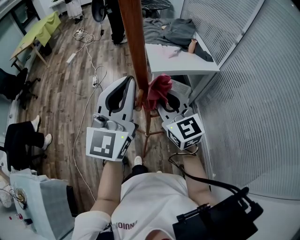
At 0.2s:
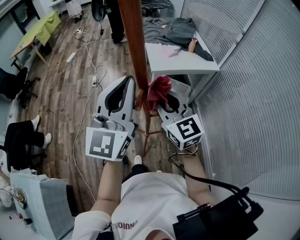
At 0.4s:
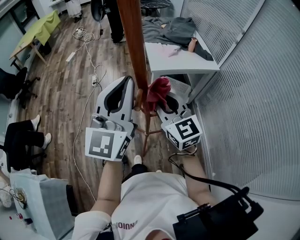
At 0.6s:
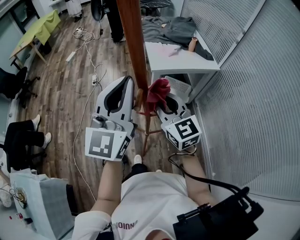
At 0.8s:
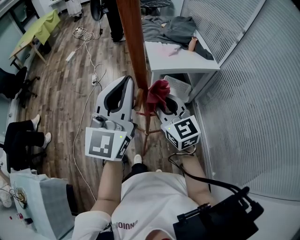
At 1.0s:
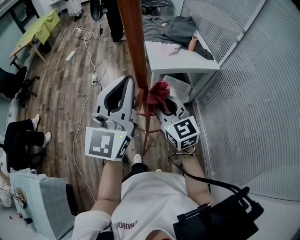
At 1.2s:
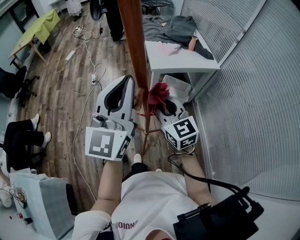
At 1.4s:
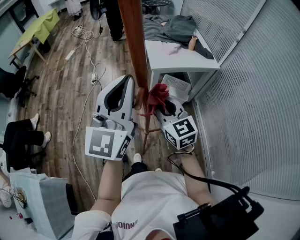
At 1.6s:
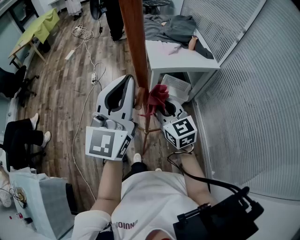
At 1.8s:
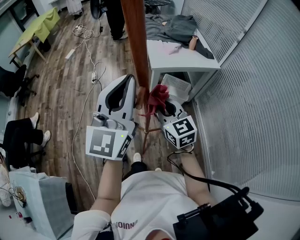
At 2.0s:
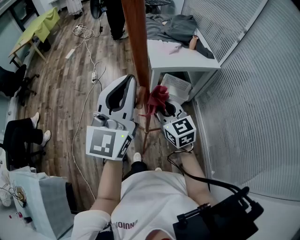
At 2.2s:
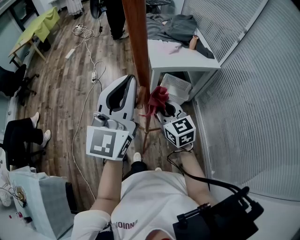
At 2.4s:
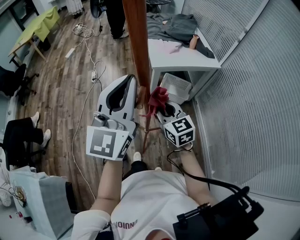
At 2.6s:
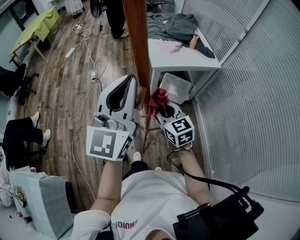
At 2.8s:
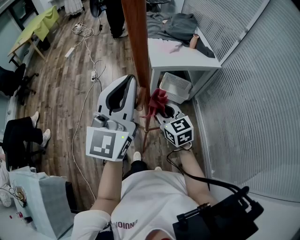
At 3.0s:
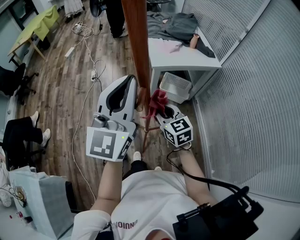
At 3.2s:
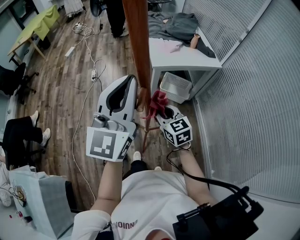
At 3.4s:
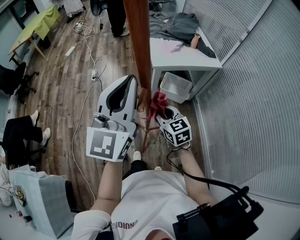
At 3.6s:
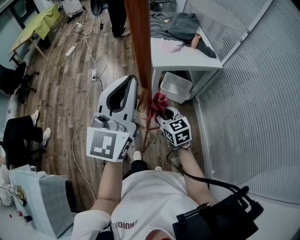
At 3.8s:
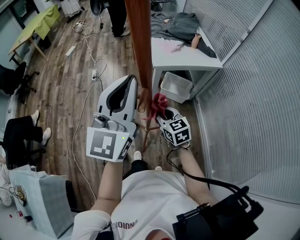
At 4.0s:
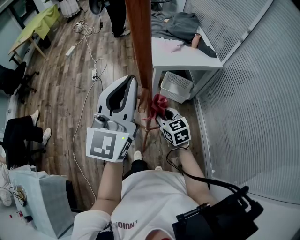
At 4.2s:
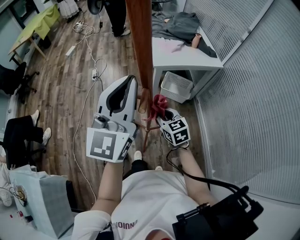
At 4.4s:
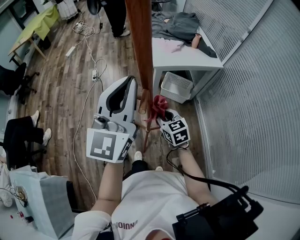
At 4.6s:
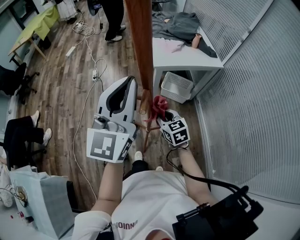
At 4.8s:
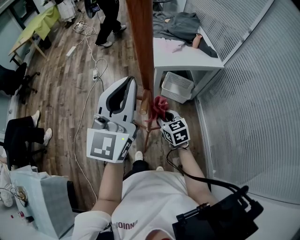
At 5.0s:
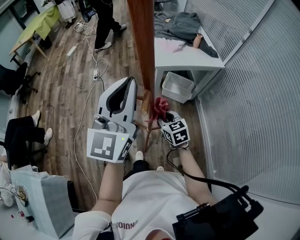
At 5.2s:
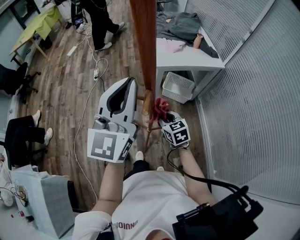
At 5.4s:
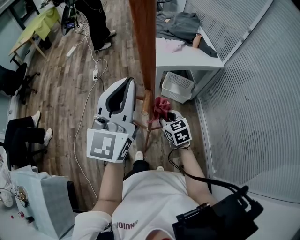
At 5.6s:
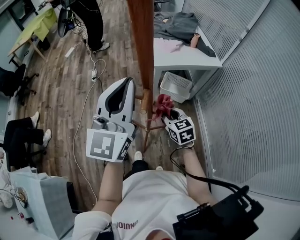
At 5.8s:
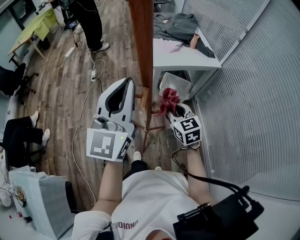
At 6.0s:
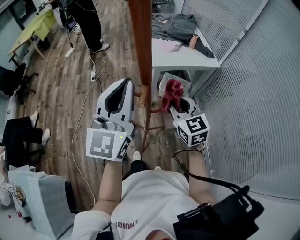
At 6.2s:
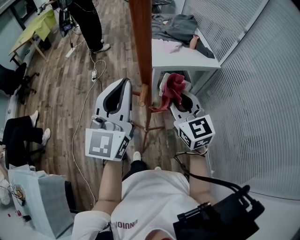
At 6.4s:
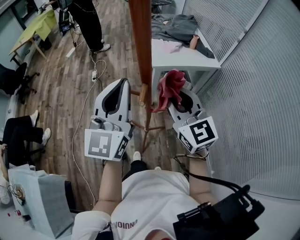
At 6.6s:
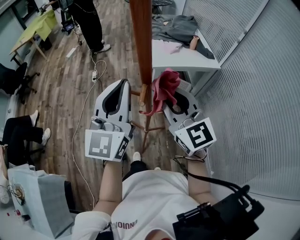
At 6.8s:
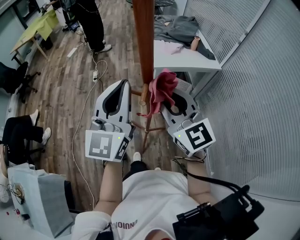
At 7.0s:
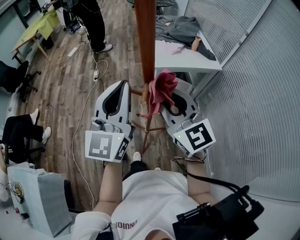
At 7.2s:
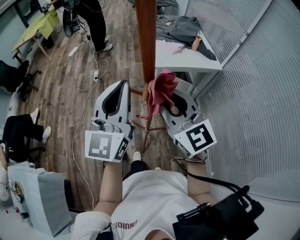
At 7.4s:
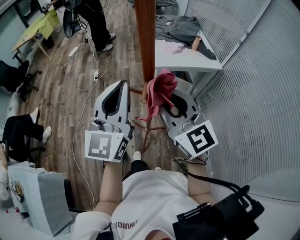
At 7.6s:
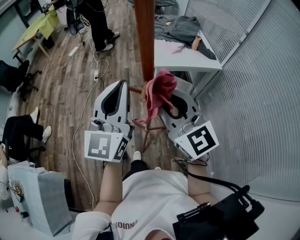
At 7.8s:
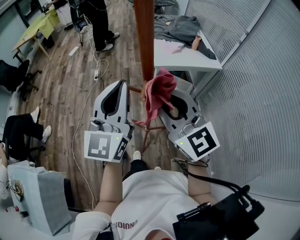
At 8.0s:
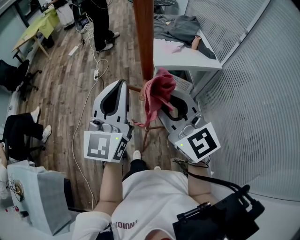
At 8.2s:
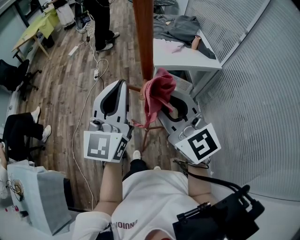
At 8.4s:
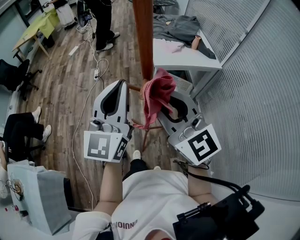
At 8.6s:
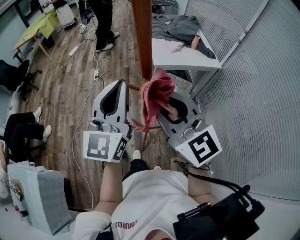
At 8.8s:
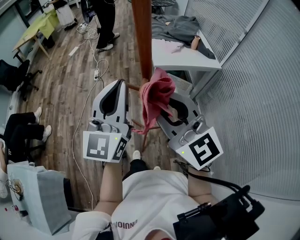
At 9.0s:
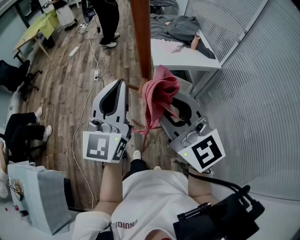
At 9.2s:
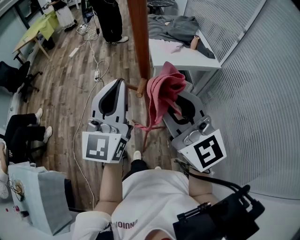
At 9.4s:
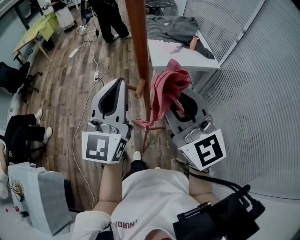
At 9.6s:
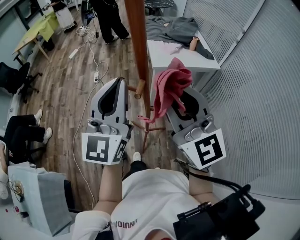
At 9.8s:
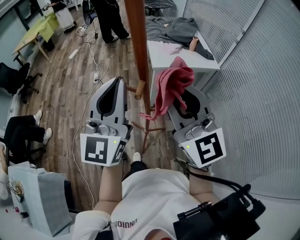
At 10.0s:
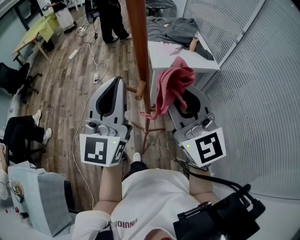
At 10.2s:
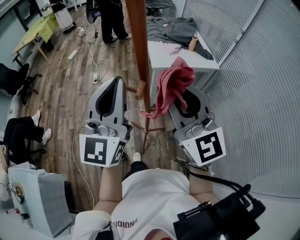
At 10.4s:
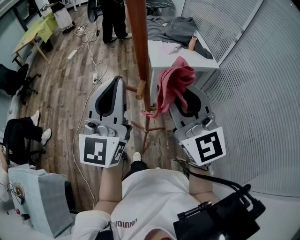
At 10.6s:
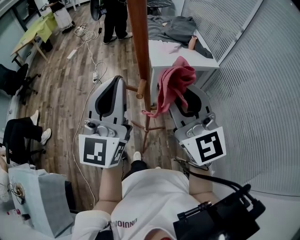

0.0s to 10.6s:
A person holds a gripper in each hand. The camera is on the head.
0.0s to 1.6s: The right gripper is displaced downward by about 10 cm.
1.6s to 3.0s: The right gripper is displaced downward by some 5 cm.
3.0s to 4.6s: The right gripper moves downward, approximately 5 cm.
4.6s to 6.0s: The right gripper goes roughly 15 cm upward.
6.0s to 7.6s: The right gripper moves upward, to the left and backward, about 15 cm, and changes its angle by some 30 degrees.
7.6s to 9.0s: The right gripper shifts some 5 cm upward.
9.0s to 10.6s: The grippers stay close to where they were, moving slightly.

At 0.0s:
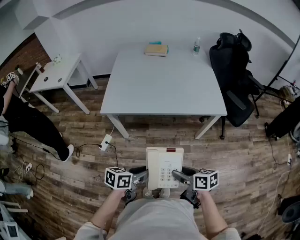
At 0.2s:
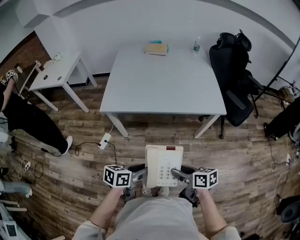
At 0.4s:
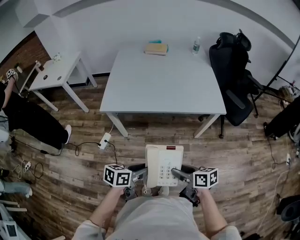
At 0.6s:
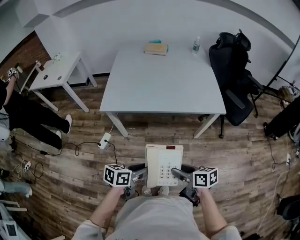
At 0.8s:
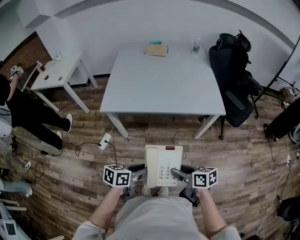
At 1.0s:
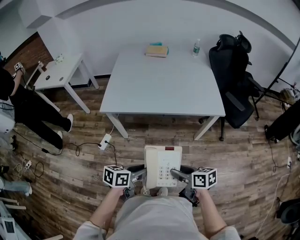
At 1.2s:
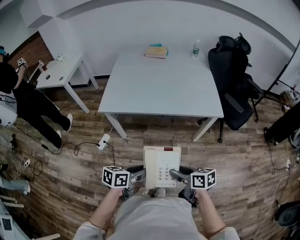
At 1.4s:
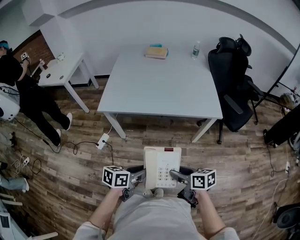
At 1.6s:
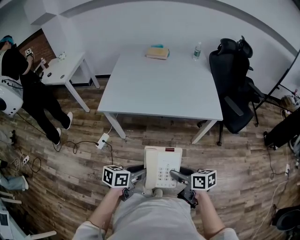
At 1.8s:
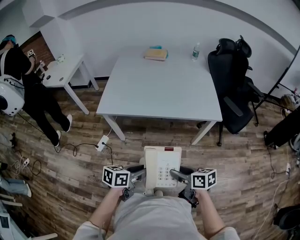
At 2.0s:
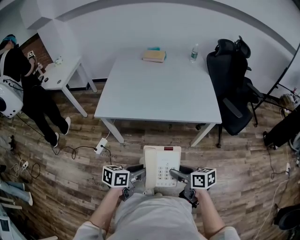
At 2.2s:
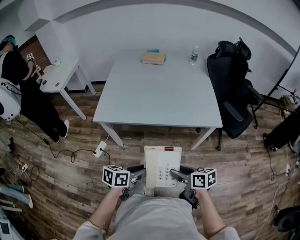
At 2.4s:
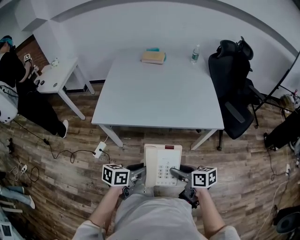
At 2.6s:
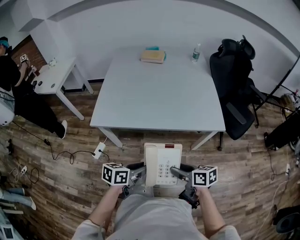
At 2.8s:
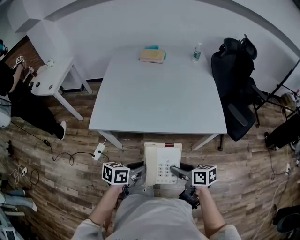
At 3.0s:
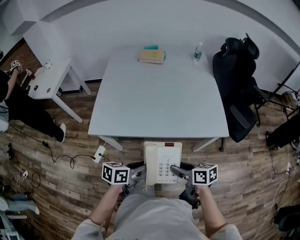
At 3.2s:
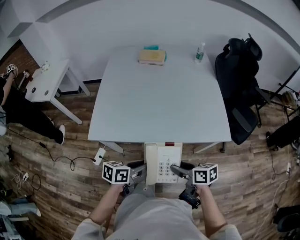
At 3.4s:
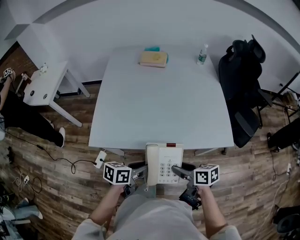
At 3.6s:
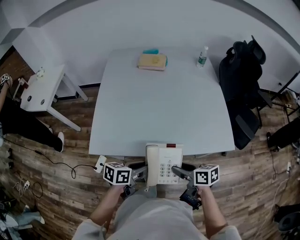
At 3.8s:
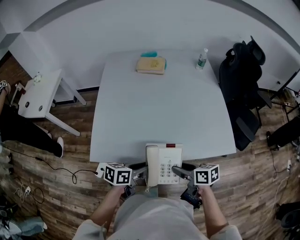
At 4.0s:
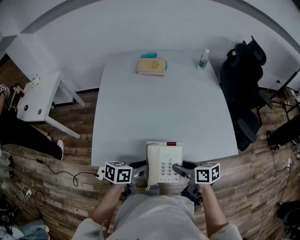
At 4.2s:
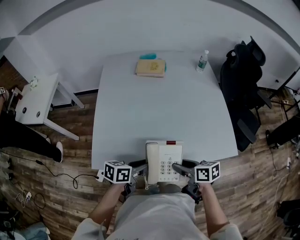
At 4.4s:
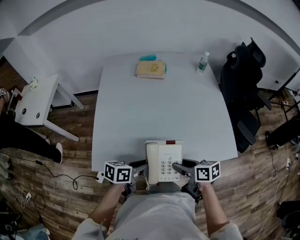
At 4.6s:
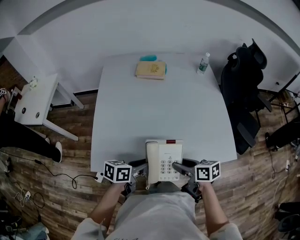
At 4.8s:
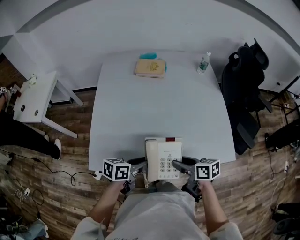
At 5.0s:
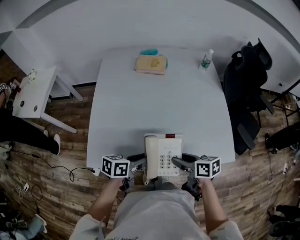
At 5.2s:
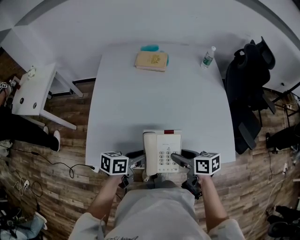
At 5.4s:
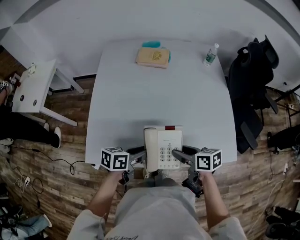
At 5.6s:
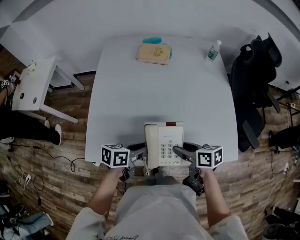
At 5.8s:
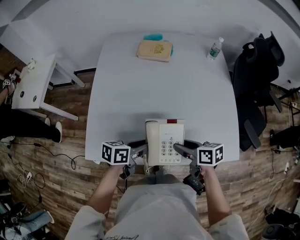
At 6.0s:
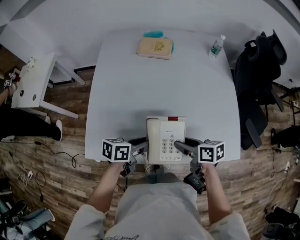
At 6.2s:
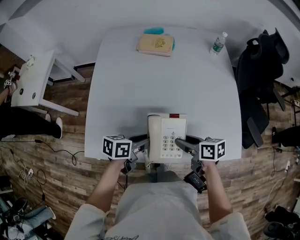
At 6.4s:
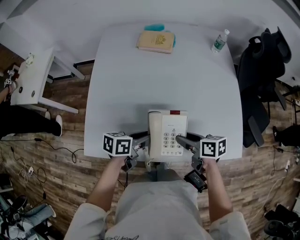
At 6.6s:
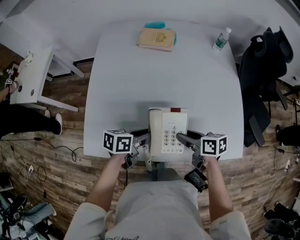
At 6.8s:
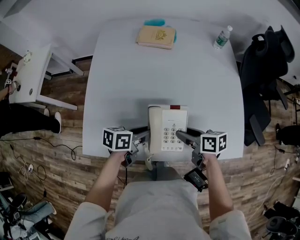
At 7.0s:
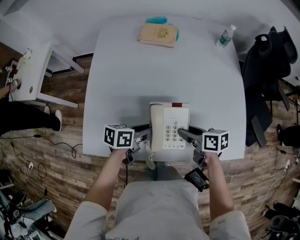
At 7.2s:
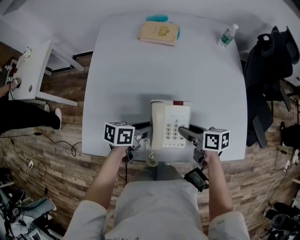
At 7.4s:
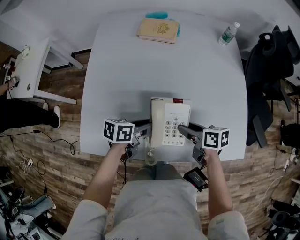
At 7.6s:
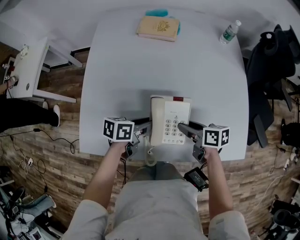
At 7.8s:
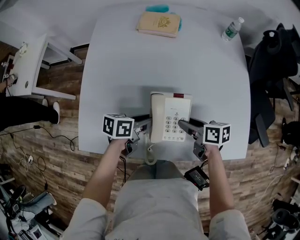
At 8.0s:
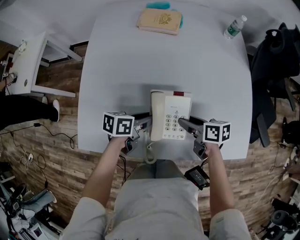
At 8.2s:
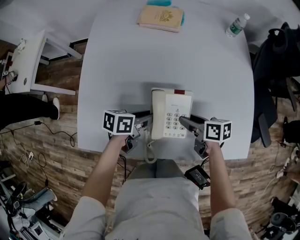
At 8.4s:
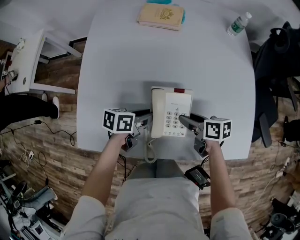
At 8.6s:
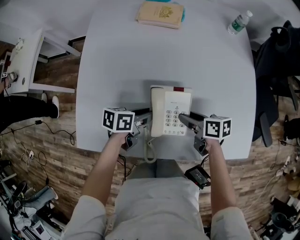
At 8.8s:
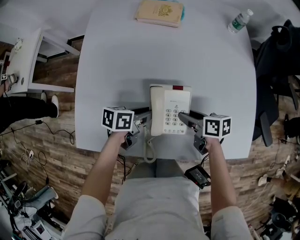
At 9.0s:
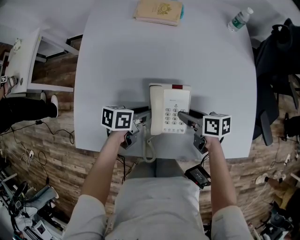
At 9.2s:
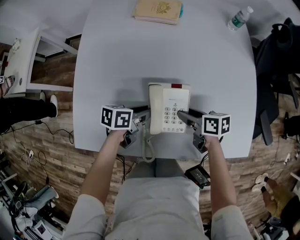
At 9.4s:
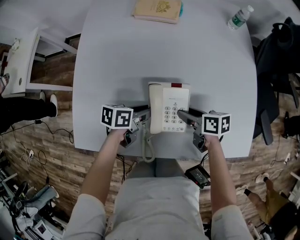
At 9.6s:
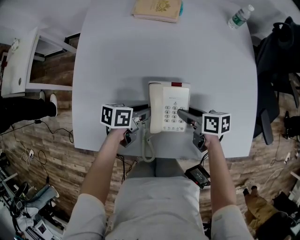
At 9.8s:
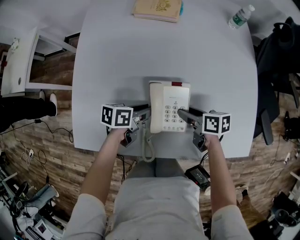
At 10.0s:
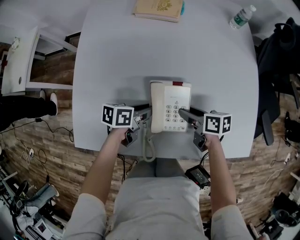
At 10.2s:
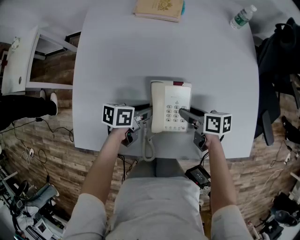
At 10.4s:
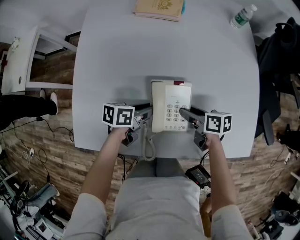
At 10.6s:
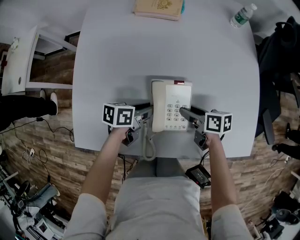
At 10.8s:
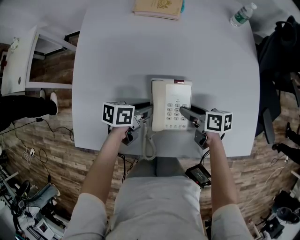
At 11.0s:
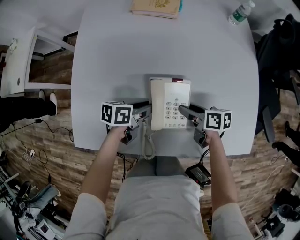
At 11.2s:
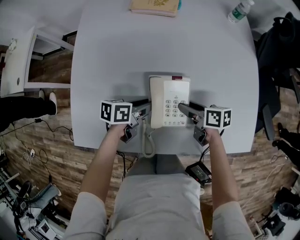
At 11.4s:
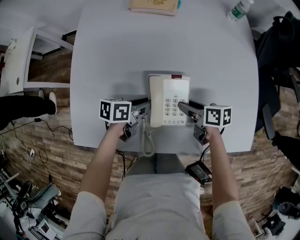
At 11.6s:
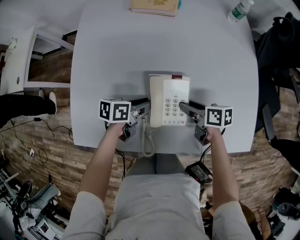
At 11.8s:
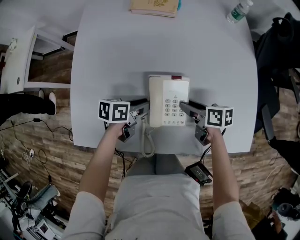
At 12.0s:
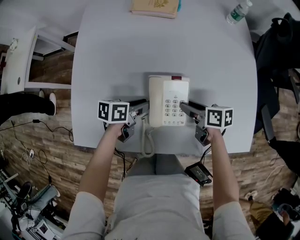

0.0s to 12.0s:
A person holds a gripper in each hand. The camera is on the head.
0.0s to 1.6s: The grippers make only small movements.
1.6s to 3.0s: Both grippers move forward, approximately 20 cm.
3.0s to 4.4s: Both grippers travel together forward, about 20 cm.
4.4s to 6.0s: Both grippers move forward, approximately 10 cm.
6.0s to 7.6s: The grippers both shift forward and downward by roughly 10 cm.
7.6s to 9.0s: The left gripper moves roughly 5 cm.
9.0s to 12.0s: There are only small adjustments of the grippers.

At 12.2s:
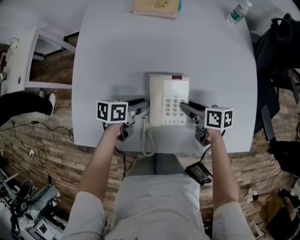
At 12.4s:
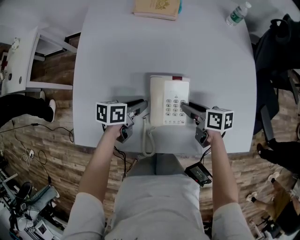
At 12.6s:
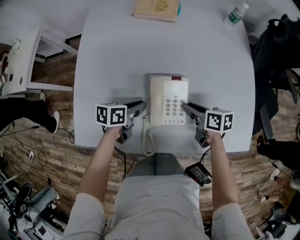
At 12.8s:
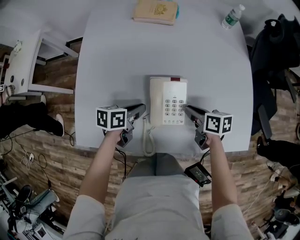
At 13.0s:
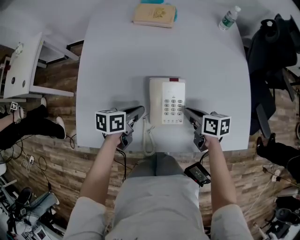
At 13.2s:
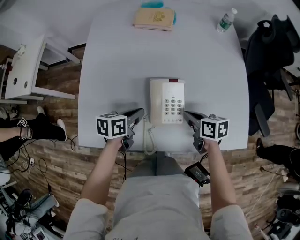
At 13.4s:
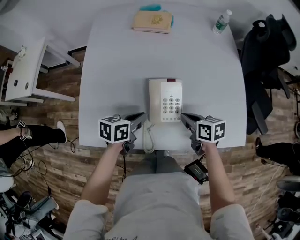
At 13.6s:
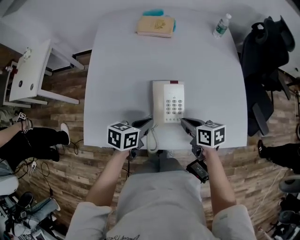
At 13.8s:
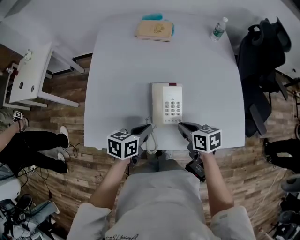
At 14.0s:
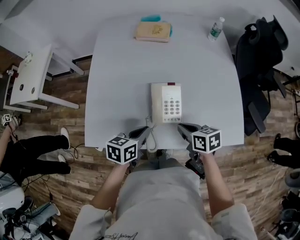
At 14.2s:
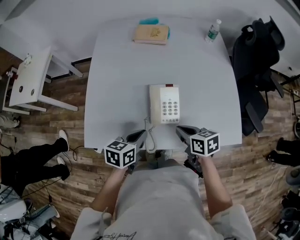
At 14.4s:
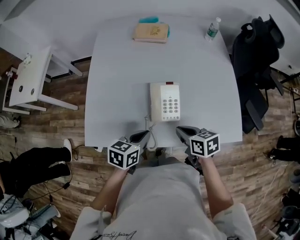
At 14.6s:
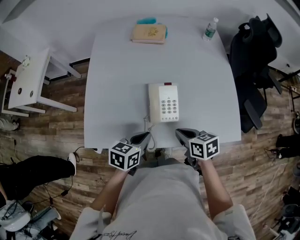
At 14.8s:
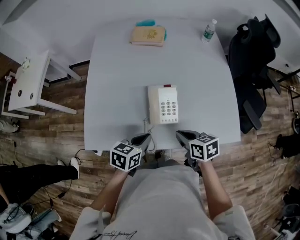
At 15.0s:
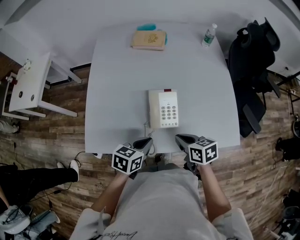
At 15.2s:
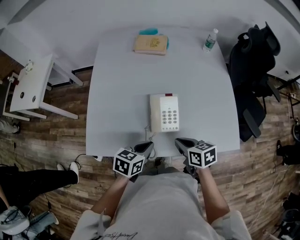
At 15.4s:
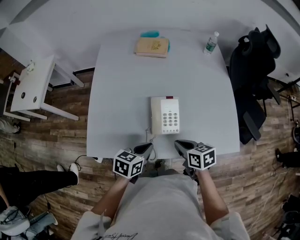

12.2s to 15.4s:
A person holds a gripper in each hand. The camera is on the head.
12.2s to 13.8s: The left gripper moves upward and backward, approximately 15 cm, and closes its fingers; the right gripper is displaced backward and upward by about 10 cm, and closes up.
13.8s to 15.4s: The grippers make only small movements.
